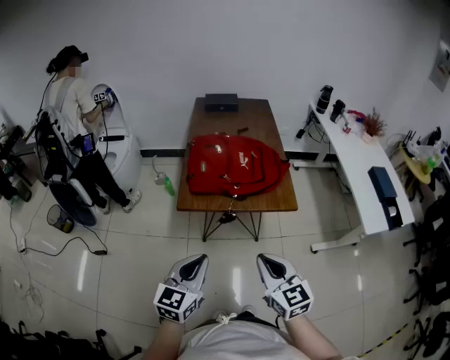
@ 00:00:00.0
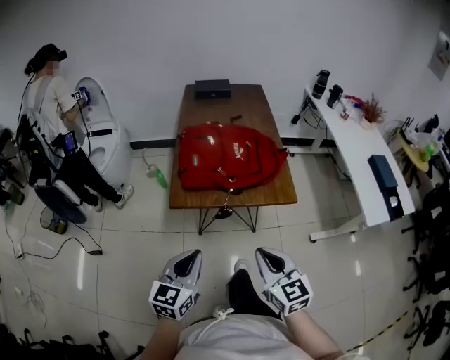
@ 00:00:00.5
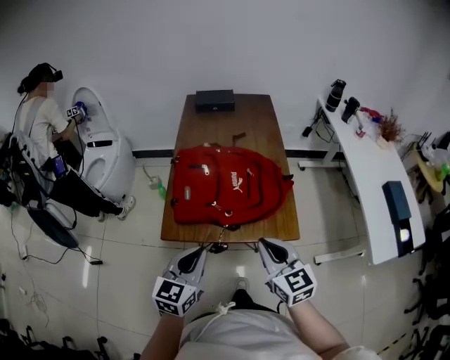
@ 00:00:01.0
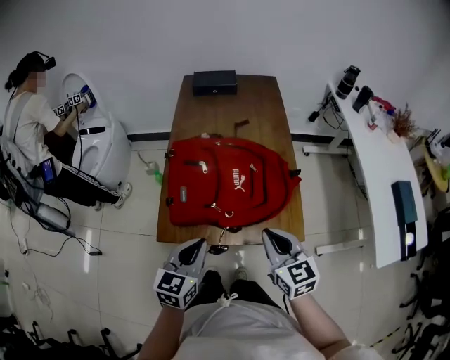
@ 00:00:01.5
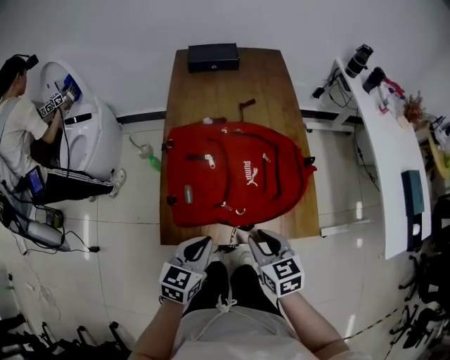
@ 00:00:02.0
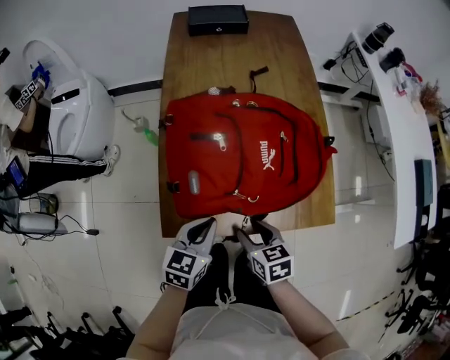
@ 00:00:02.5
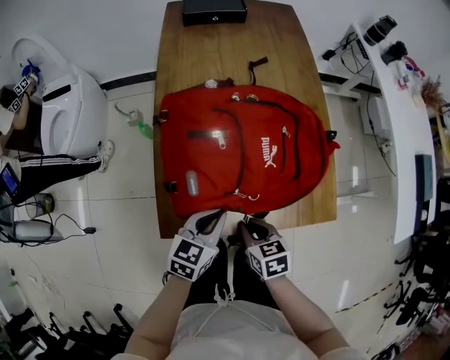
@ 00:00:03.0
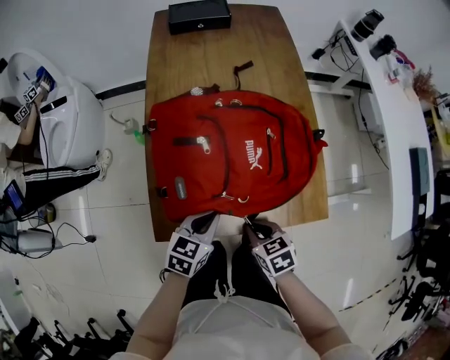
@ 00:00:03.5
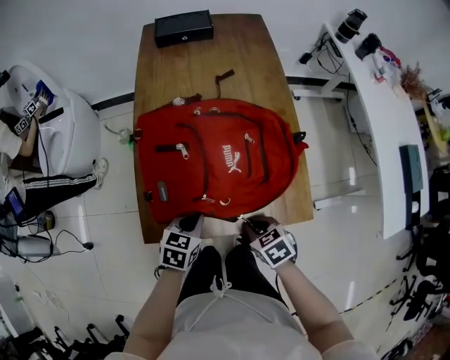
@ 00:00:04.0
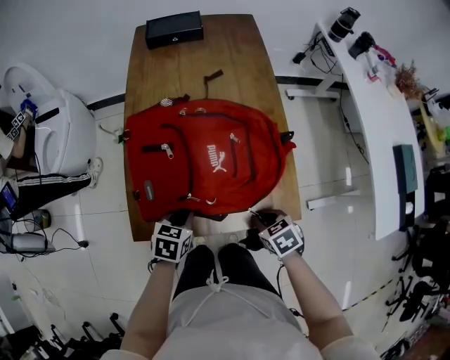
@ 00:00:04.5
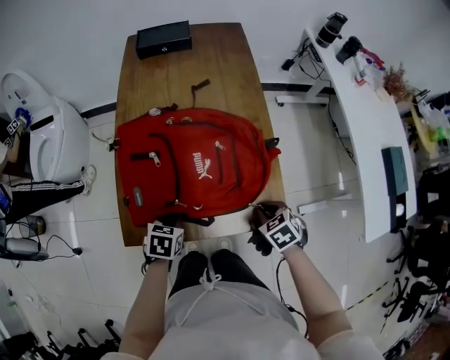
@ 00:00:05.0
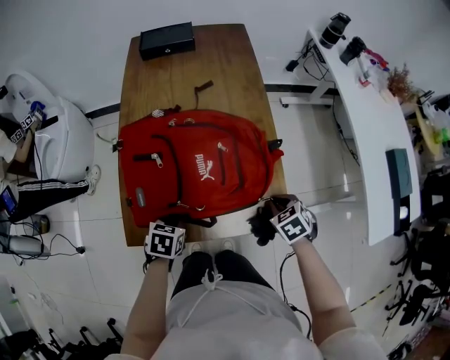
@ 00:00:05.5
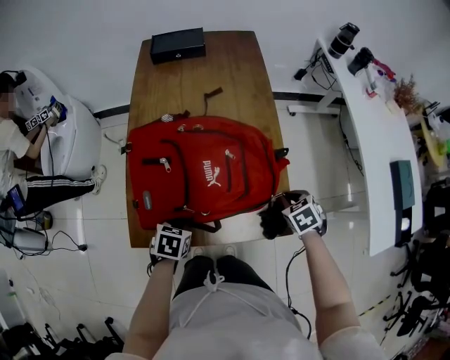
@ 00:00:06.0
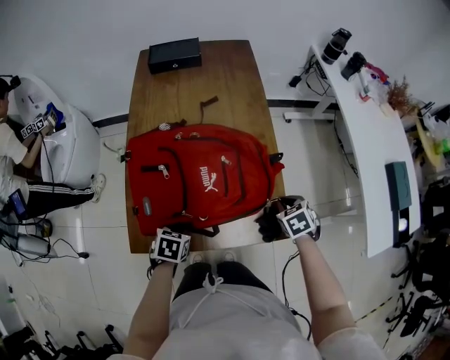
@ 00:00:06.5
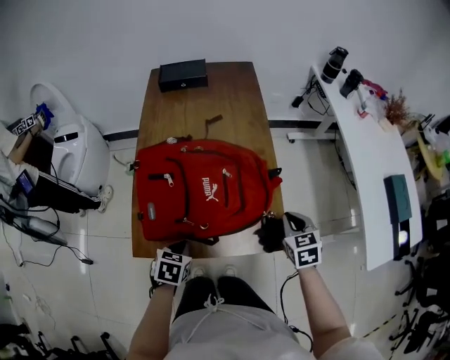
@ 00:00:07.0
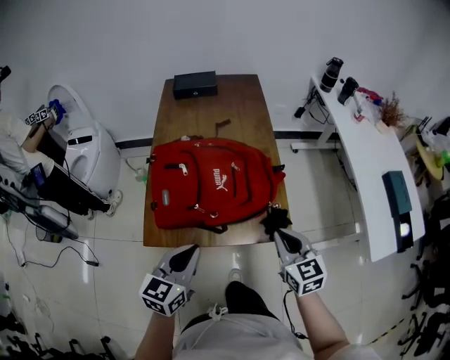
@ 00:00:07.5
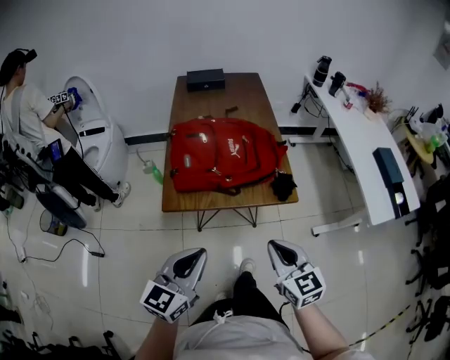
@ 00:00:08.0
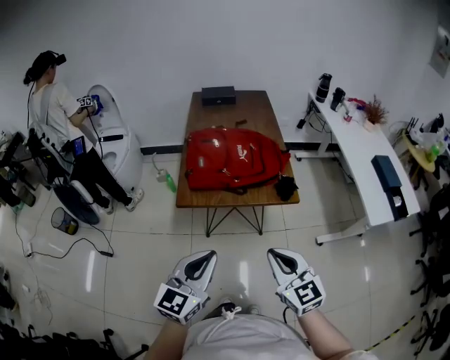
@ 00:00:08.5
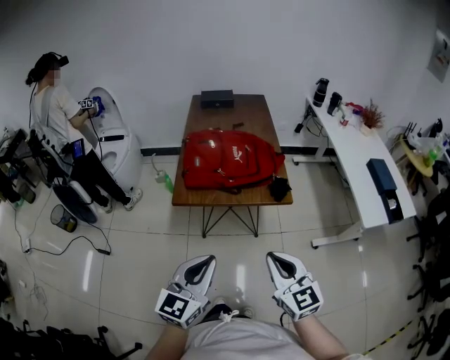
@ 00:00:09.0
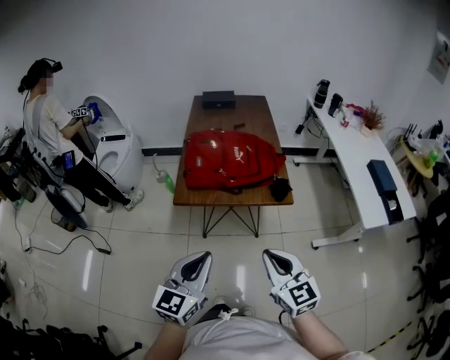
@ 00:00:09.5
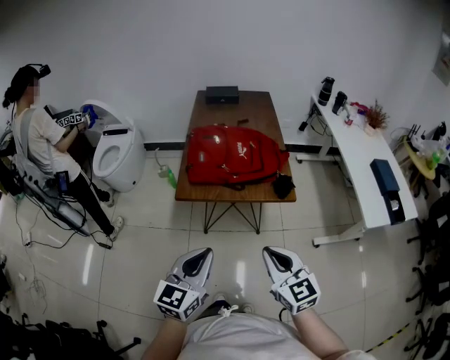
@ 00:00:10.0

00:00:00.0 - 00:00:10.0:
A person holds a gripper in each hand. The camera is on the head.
00:00:00.0 - 00:00:02.0: The grippers both shift forward and downward by some 35 cm. The right gripper swivels roughly 20 degrees, and opens up.
00:00:02.0 - 00:00:04.0: The right gripper shifts some 10 cm downward, rotates roughly 30 degrees, and opens, then closes again, while the left gripper moves downward and forward, about 10 cm.
00:00:04.0 - 00:00:06.0: The right gripper heads to the right and forward, covering some 25 cm.
00:00:06.0 - 00:00:08.0: The grippers both shift backward and upward by roughly 40 cm. The left gripper tips its fingers upward by roughly 60 degrees; the right gripper tips its fingers upward by some 50 degrees.
00:00:08.0 - 00:00:10.0: The left gripper travels backward by some 10 cm. Meanwhile the right gripper is displaced backward and upward by approximately 10 cm.

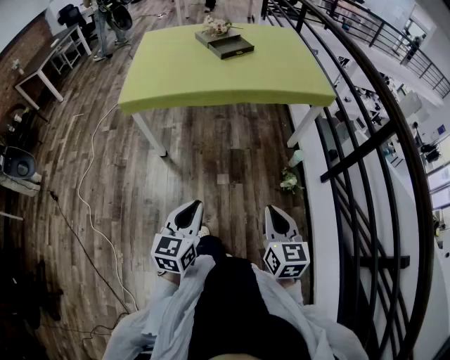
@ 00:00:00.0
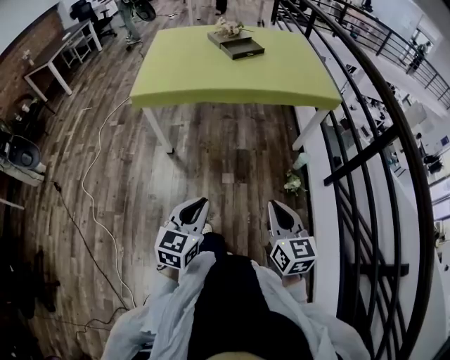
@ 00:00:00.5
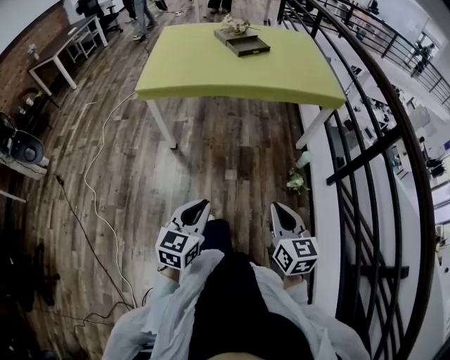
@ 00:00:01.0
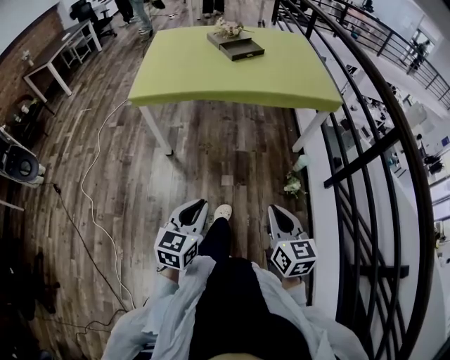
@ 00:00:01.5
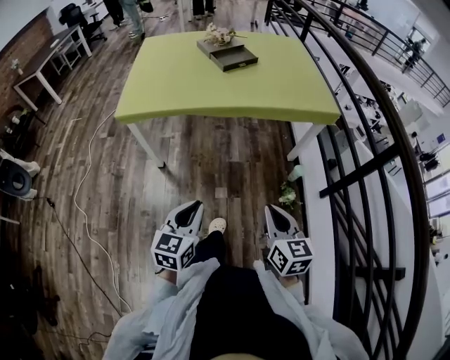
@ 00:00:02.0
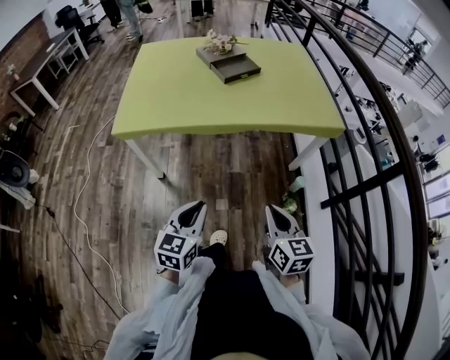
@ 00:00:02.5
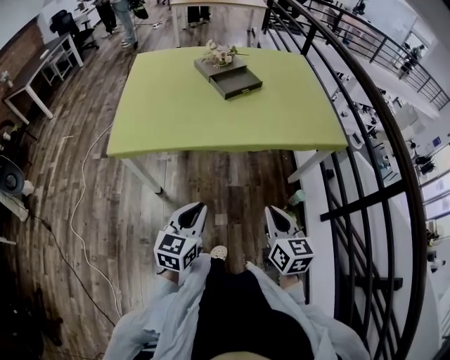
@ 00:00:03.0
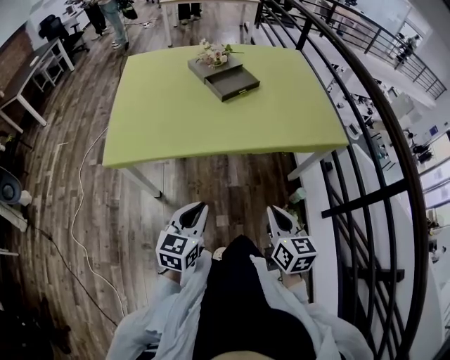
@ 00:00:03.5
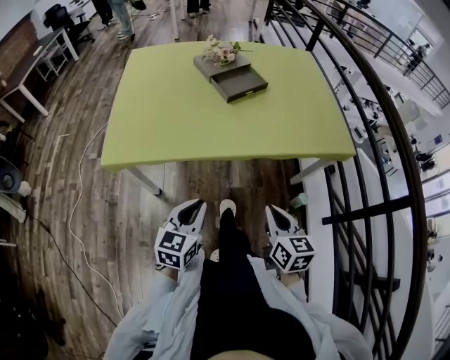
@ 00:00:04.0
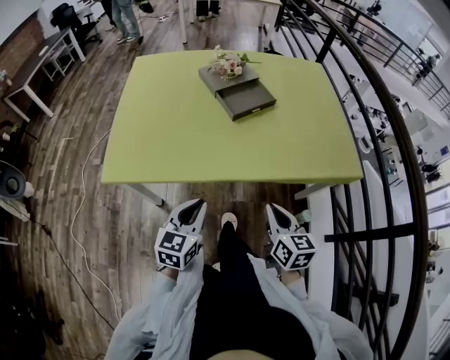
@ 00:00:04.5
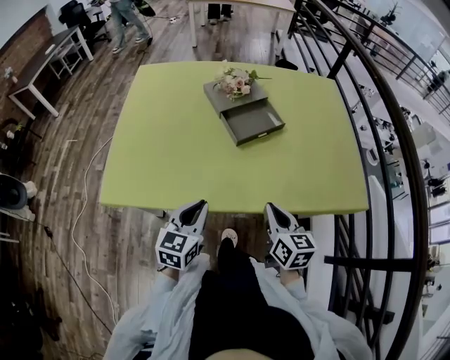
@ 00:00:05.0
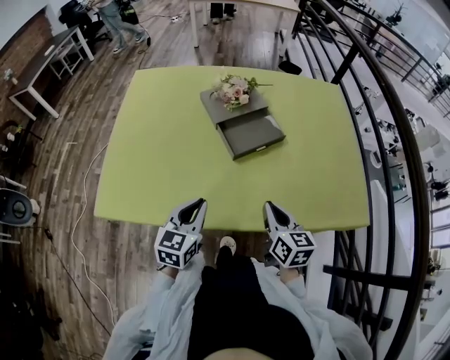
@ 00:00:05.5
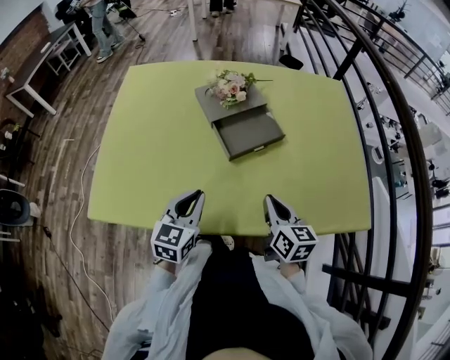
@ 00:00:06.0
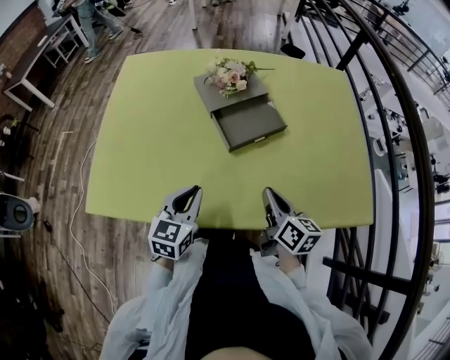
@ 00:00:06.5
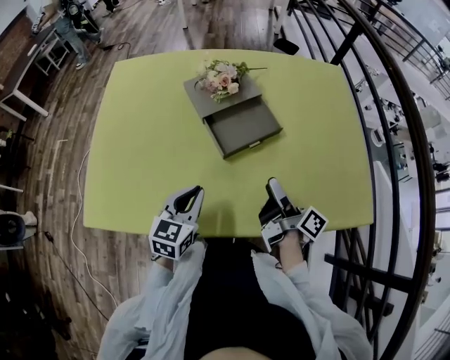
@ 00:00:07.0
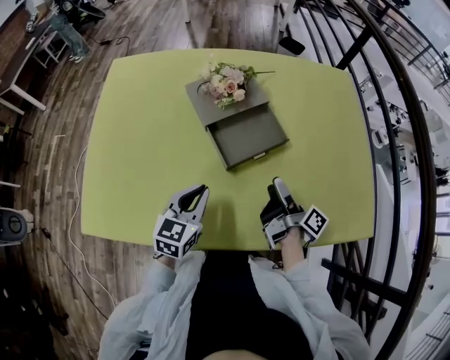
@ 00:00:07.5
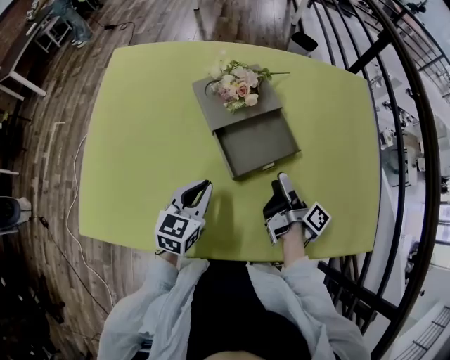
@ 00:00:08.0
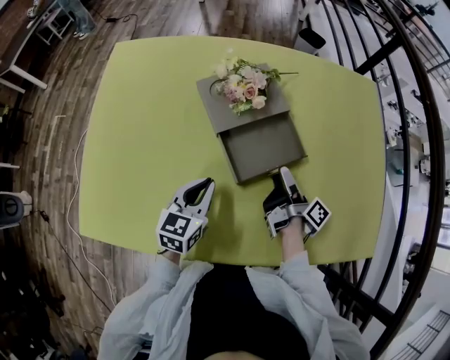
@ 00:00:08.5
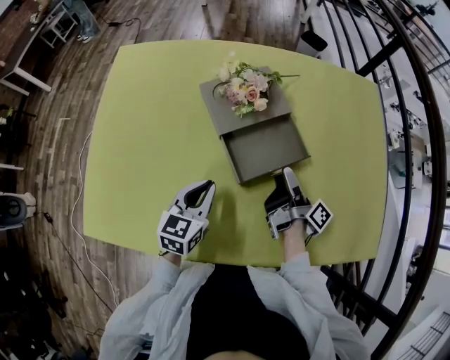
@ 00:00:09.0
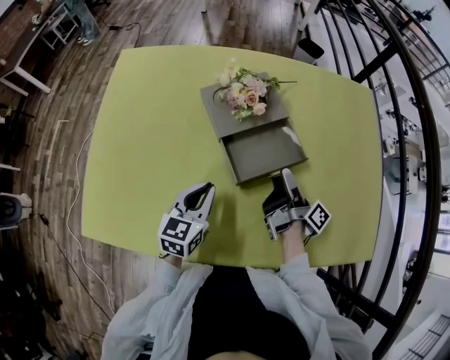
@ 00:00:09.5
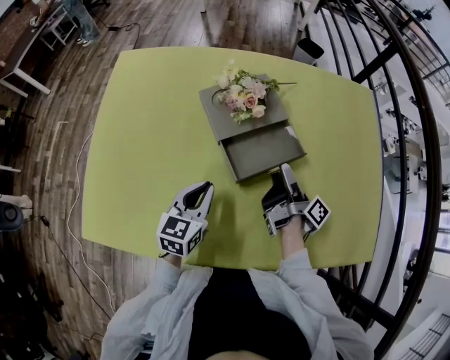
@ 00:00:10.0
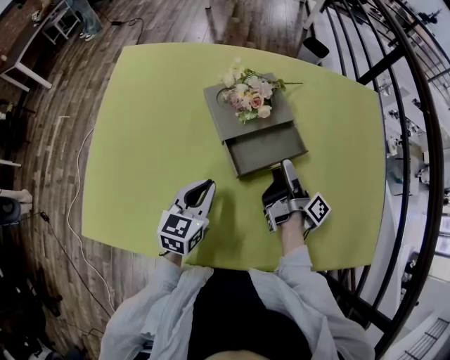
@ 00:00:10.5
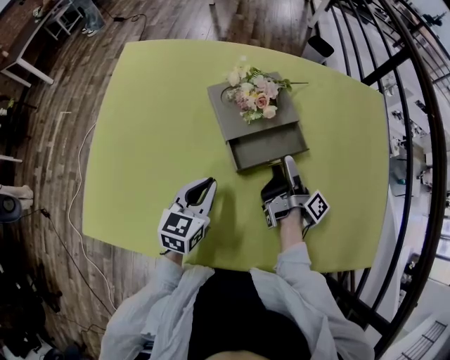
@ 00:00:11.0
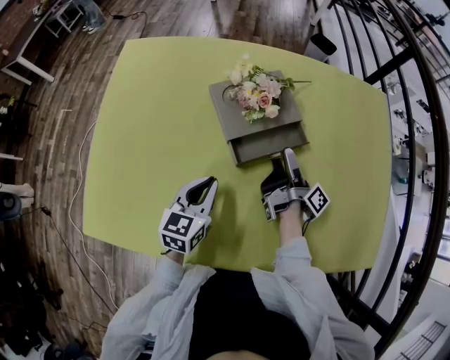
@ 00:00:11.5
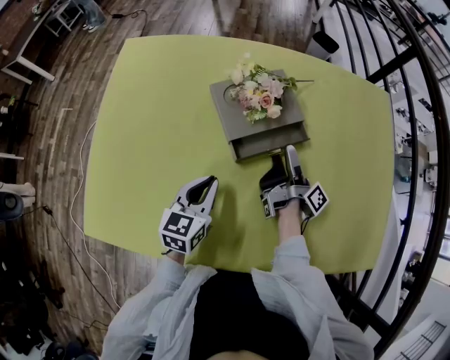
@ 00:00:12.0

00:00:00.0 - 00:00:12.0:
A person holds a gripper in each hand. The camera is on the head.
00:00:00.0 - 00:00:02.0: Both grippers move forward, roughly 10 cm.
00:00:02.0 - 00:00:04.0: Both grippers move forward, approximately 25 cm.
00:00:04.0 - 00:00:06.0: Both grippers move forward, approximately 30 cm.
00:00:06.0 - 00:00:08.0: The left gripper travels forward and downward by approximately 15 cm. Meanwhile the right gripper heads forward, covering some 15 cm, rotates around the line of its fingers by approximately 70 degrees, clockwise from behind, and opens its fingers.
00:00:08.0 - 00:00:10.0: The right gripper shifts some 5 cm forward.
00:00:10.0 - 00:00:12.0: The right gripper moves forward, roughly 5 cm.

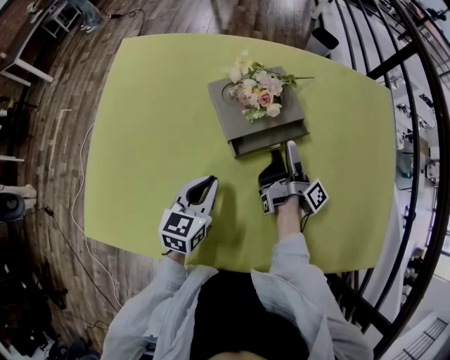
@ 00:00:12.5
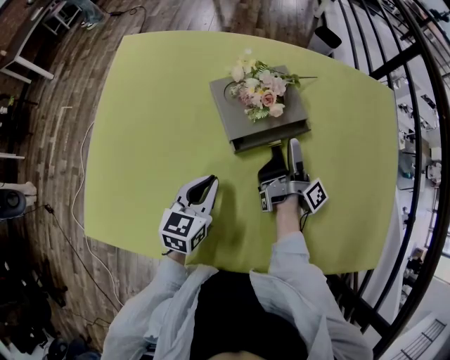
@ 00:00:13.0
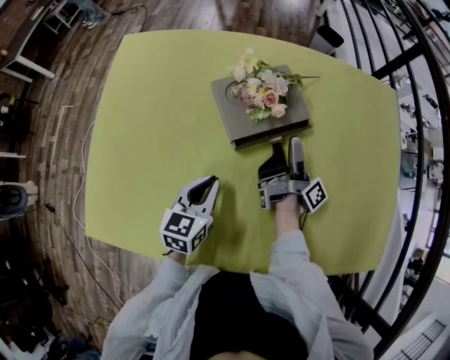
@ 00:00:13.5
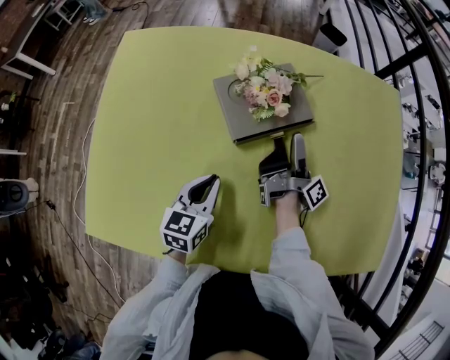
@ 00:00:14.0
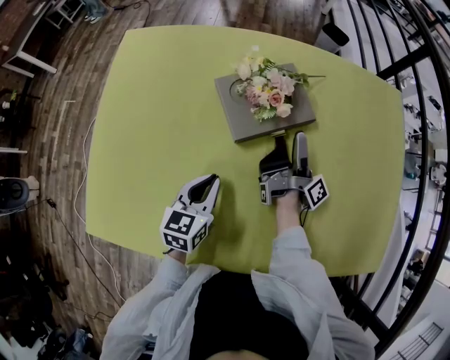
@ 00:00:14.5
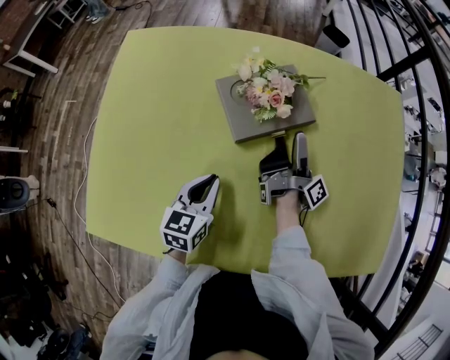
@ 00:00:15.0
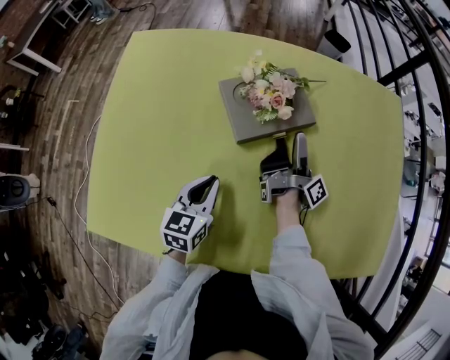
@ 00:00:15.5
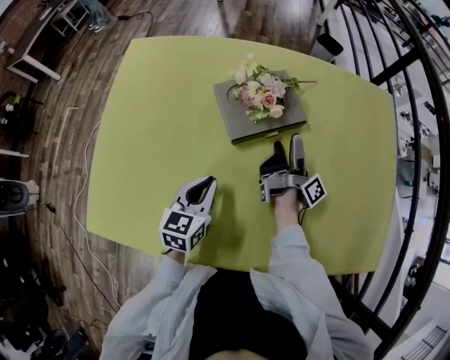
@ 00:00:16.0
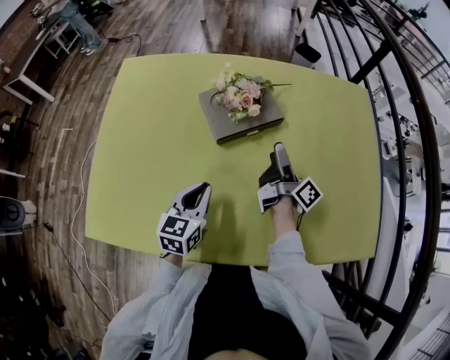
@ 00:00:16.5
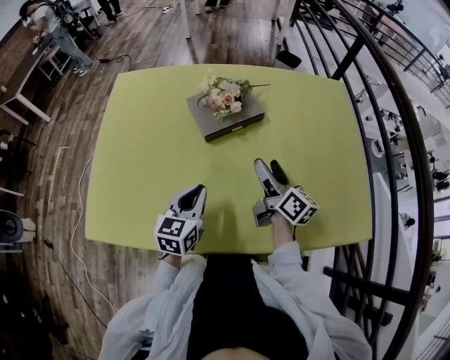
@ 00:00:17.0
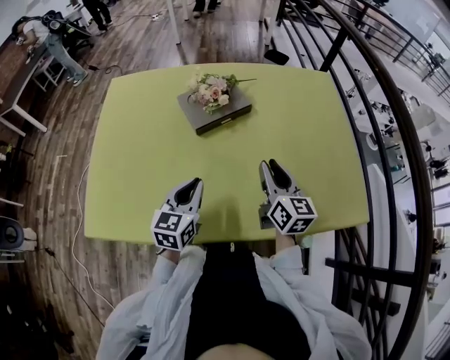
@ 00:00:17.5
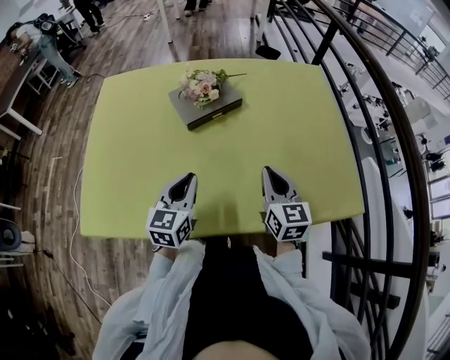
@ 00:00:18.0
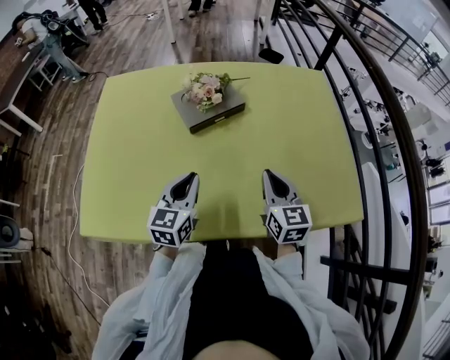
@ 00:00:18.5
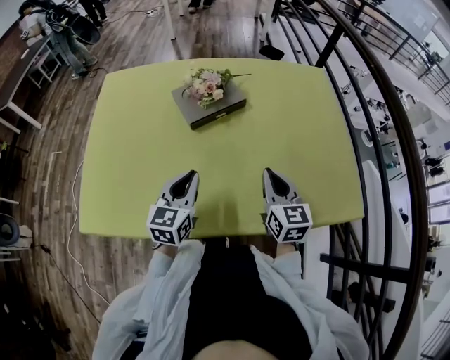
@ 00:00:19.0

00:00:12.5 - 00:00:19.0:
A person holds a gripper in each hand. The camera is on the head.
00:00:12.5 - 00:00:14.5: The grippers make only small movements.
00:00:14.5 - 00:00:17.0: The right gripper is displaced backward by about 15 cm, and rotates around the line of its fingers by roughly 50 degrees, counterclockwise from behind. Meanwhile the left gripper moves backward and upward, about 10 cm.
00:00:17.0 - 00:00:19.0: The left gripper changes place by roughly 5 cm, while the right gripper is displaced backward by roughly 10 cm, rolls counterclockwise, seen from behind, by about 40 degrees, and closes up.
